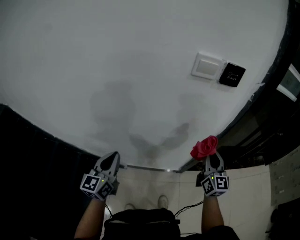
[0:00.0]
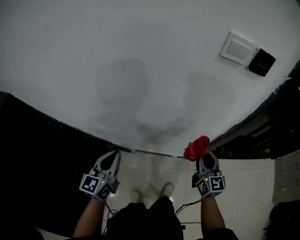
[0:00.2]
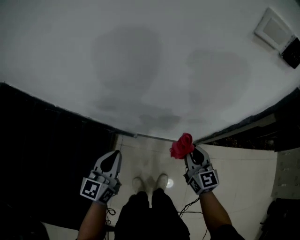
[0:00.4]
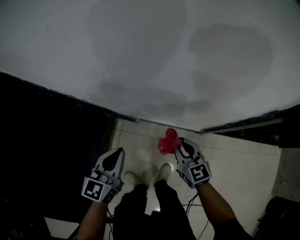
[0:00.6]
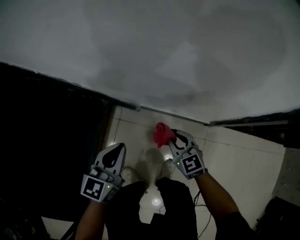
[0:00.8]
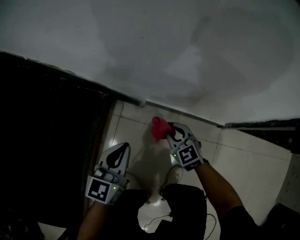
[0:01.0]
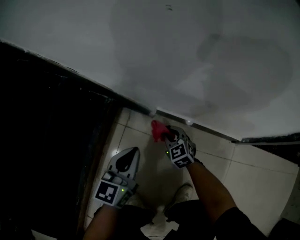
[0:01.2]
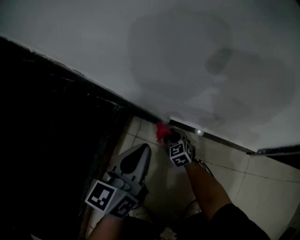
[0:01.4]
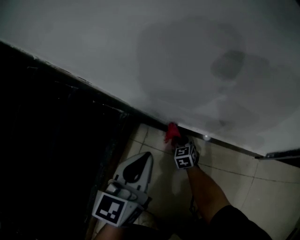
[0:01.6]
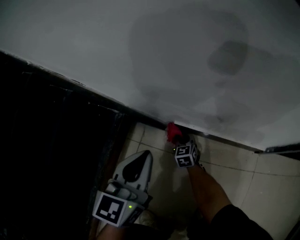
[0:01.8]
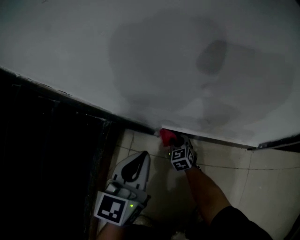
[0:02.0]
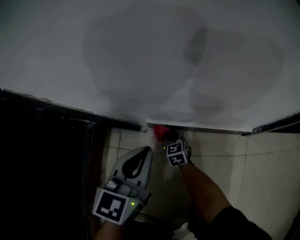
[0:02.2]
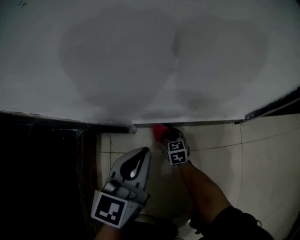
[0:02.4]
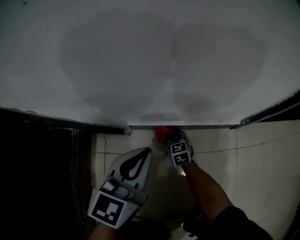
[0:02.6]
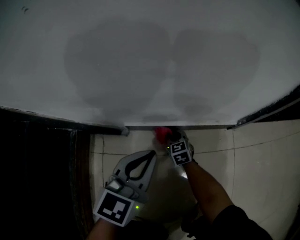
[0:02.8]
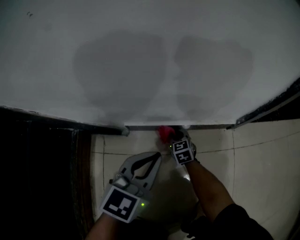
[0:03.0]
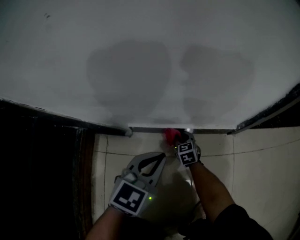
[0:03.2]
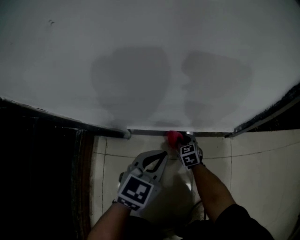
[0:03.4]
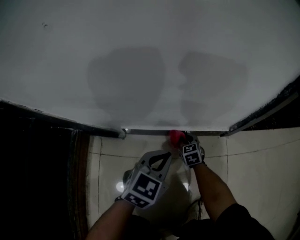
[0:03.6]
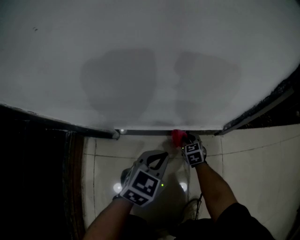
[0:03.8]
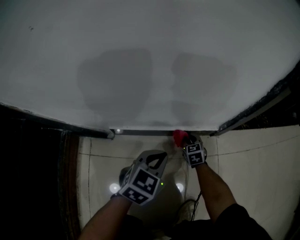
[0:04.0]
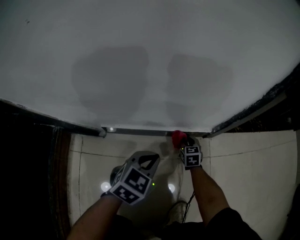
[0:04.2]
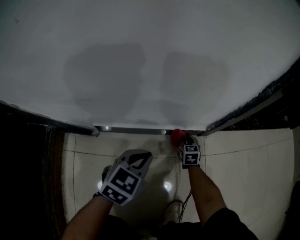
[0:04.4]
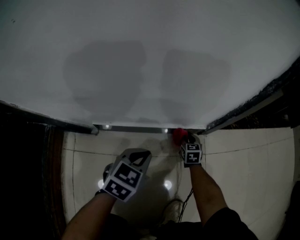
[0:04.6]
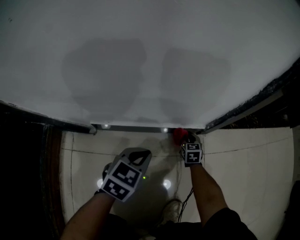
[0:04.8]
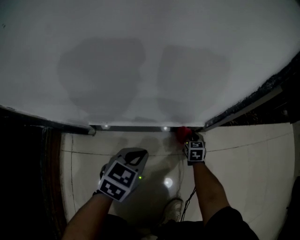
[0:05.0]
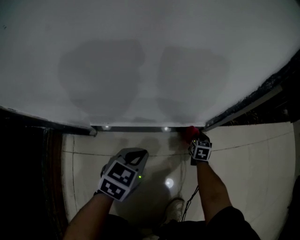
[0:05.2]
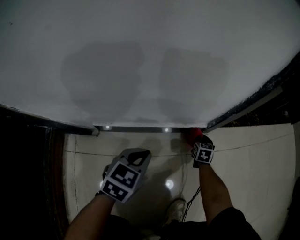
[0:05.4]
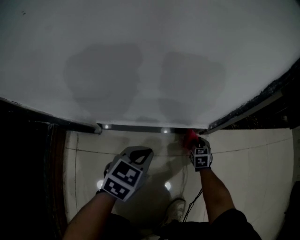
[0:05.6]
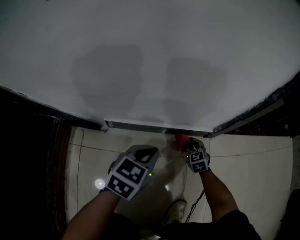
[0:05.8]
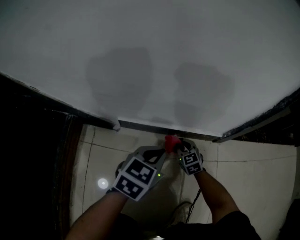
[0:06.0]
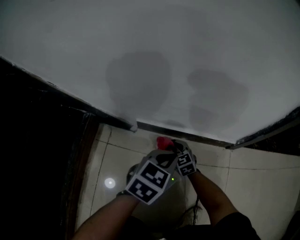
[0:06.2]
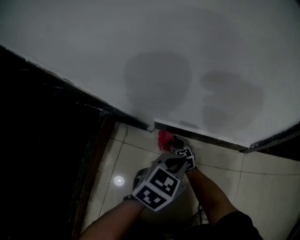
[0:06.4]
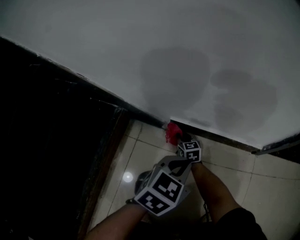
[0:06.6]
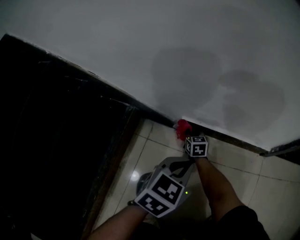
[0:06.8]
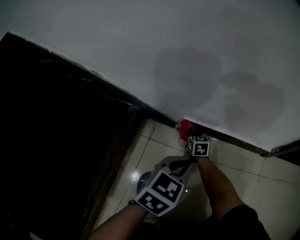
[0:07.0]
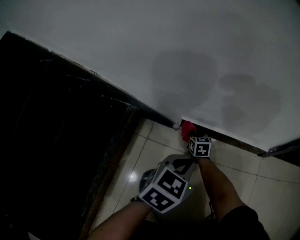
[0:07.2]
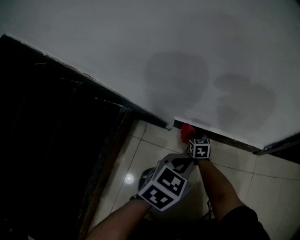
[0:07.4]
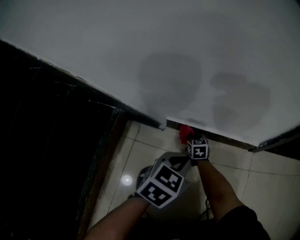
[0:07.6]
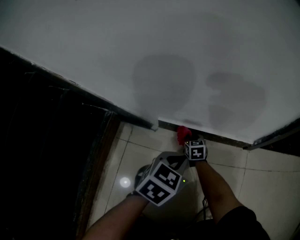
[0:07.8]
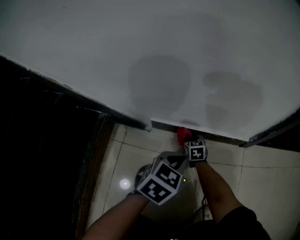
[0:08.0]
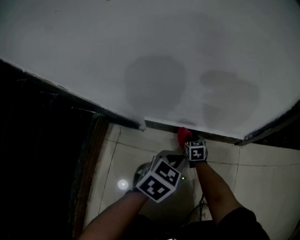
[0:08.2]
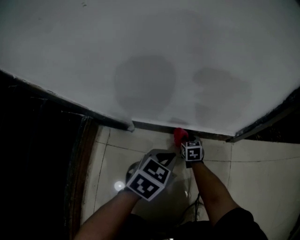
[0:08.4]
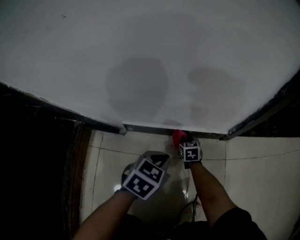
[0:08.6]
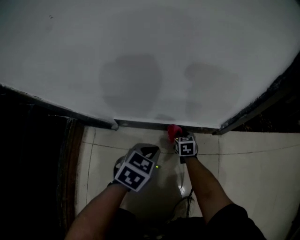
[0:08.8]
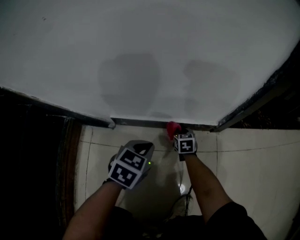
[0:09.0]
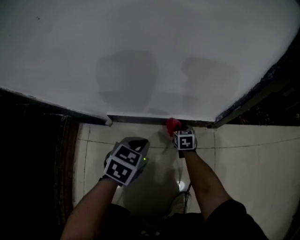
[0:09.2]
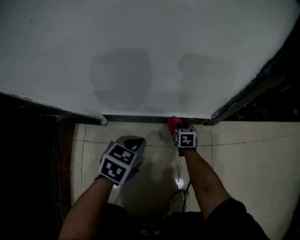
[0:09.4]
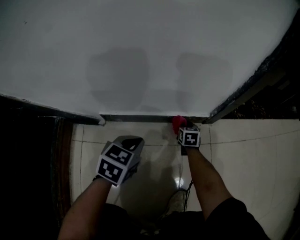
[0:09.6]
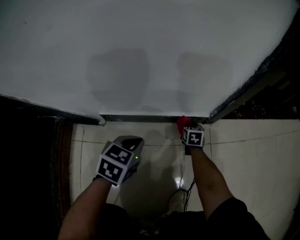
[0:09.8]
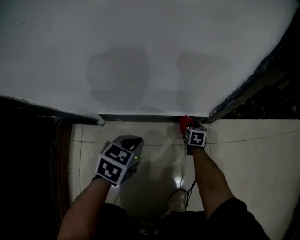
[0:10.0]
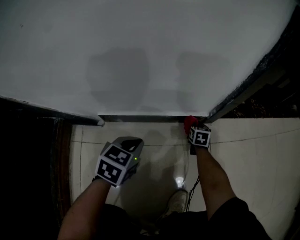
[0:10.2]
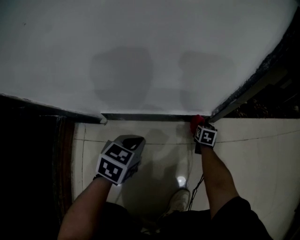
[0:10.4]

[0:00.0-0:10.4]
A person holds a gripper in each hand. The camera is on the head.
0:00.0 to 0:01.4: The left gripper travels downward by approximately 60 cm. Meanwhile the right gripper moves downward and to the left, approximately 1 m, and tilts its fingers roughly 40 degrees downward.
0:01.4 to 0:03.0: The right gripper moves about 20 cm, and changes its angle by about 30 degrees; the left gripper shifts by about 20 cm, and changes its angle by roughly 40 degrees.
0:03.0 to 0:04.4: The left gripper moves to the right and downward, some 15 cm. The right gripper travels to the right by some 25 cm.
0:04.4 to 0:06.0: The right gripper shifts by about 15 cm, and changes its angle by some 30 degrees, while the left gripper ends up some 5 cm from where it was.
0:06.0 to 0:07.4: The right gripper heads to the left, covering about 20 cm, while the left gripper heads to the left, covering approximately 10 cm.
0:07.4 to 0:09.0: The left gripper moves to the right and forward, about 15 cm. Meanwhile the right gripper is displaced to the right by roughly 25 cm.
0:09.0 to 0:10.4: The right gripper heads to the right, covering approximately 20 cm, and swivels roughly 20 degrees.

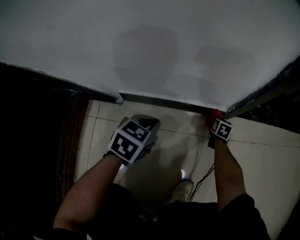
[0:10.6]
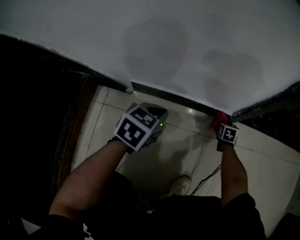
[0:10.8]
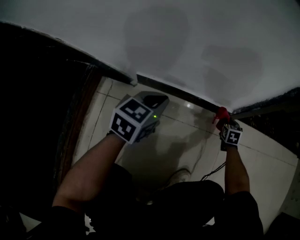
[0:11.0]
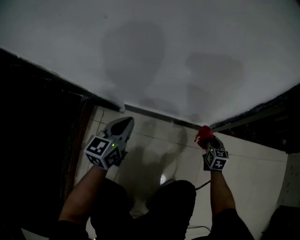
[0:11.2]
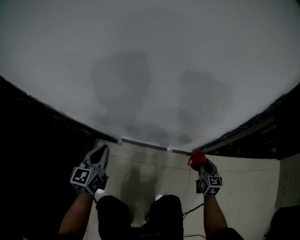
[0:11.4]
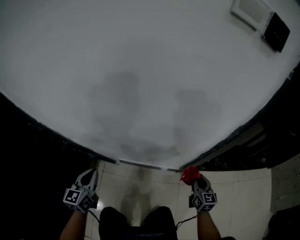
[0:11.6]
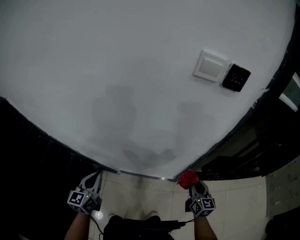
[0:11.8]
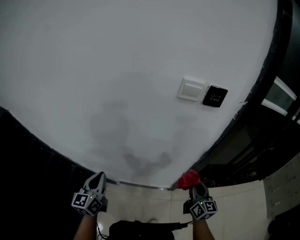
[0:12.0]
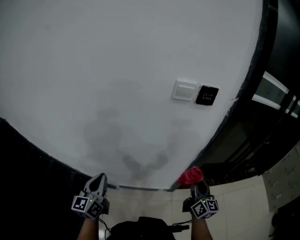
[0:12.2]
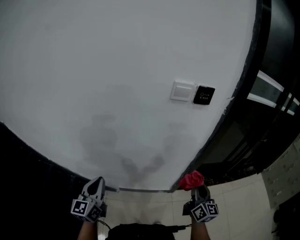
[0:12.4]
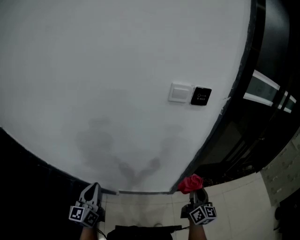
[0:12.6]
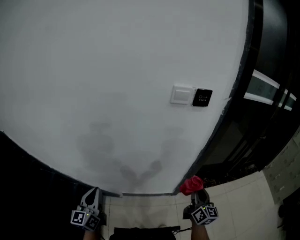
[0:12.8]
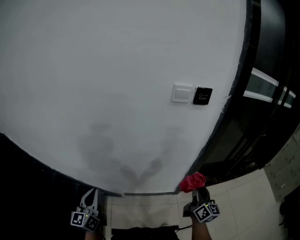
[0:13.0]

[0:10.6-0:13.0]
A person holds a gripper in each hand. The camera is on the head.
0:10.6 to 0:11.8: The grippers both shift upward by about 70 cm. The right gripper angles its fingers upward, by some 40 degrees. The left gripper angles its fingers upward, by roughly 30 degrees.
0:11.8 to 0:13.0: The two grippers go roughly 15 cm upward and backward. The right gripper rotates roughly 30 degrees.

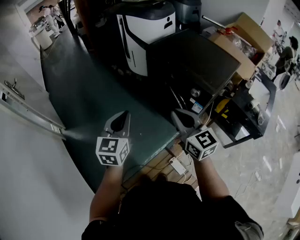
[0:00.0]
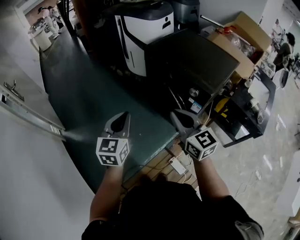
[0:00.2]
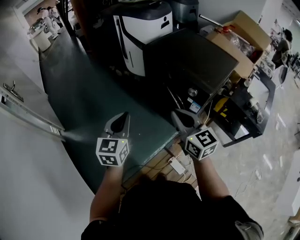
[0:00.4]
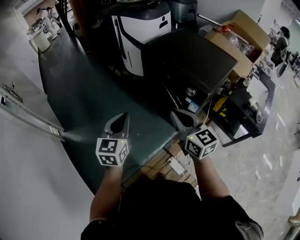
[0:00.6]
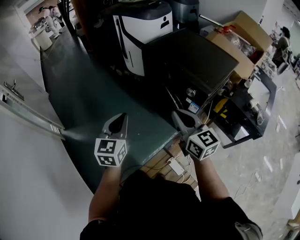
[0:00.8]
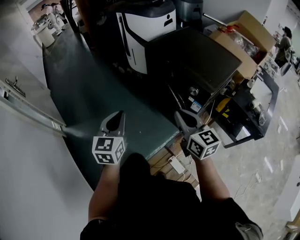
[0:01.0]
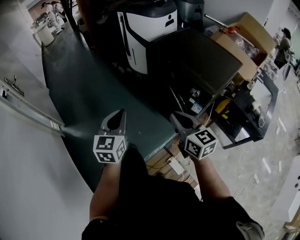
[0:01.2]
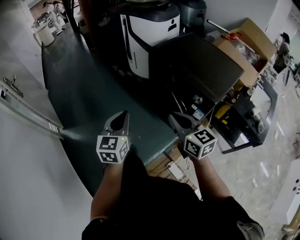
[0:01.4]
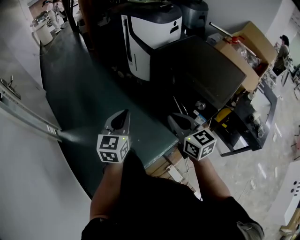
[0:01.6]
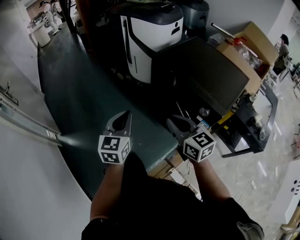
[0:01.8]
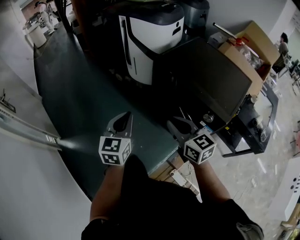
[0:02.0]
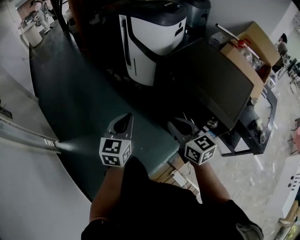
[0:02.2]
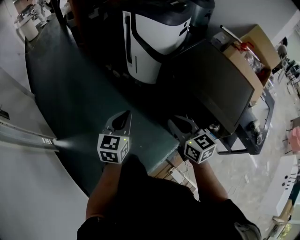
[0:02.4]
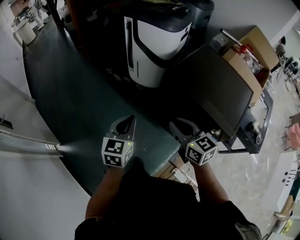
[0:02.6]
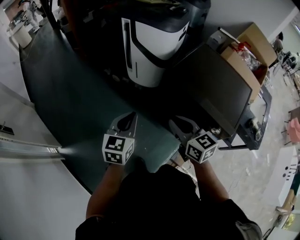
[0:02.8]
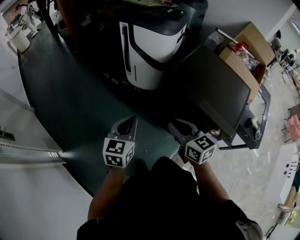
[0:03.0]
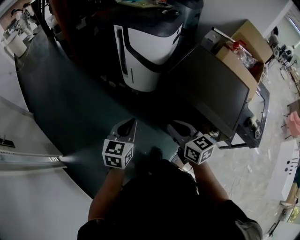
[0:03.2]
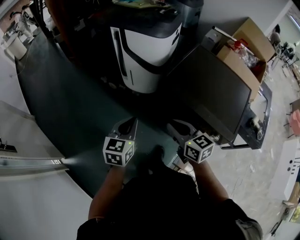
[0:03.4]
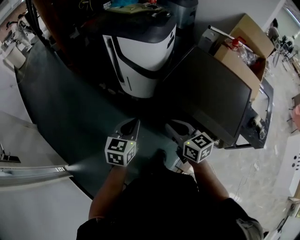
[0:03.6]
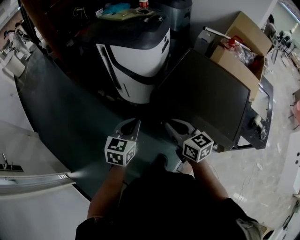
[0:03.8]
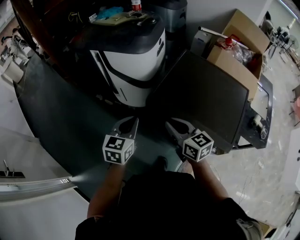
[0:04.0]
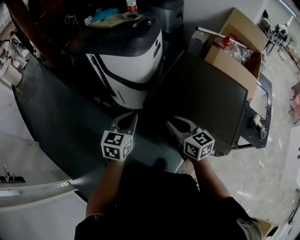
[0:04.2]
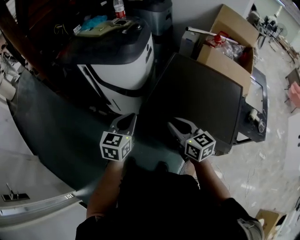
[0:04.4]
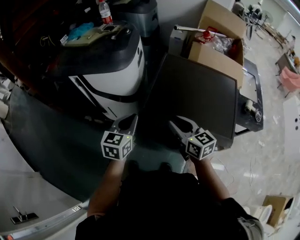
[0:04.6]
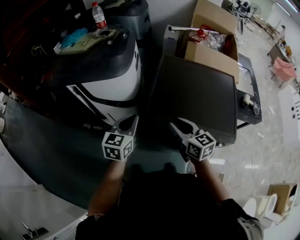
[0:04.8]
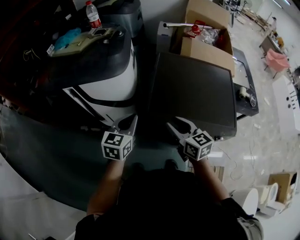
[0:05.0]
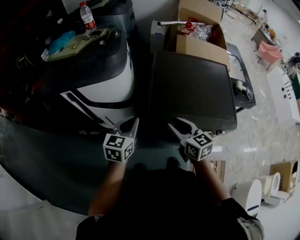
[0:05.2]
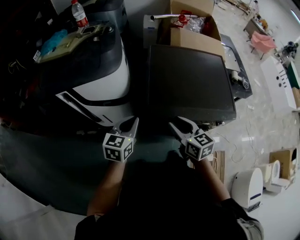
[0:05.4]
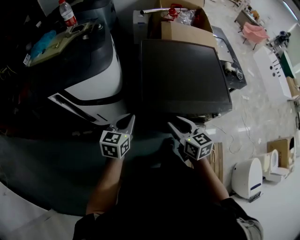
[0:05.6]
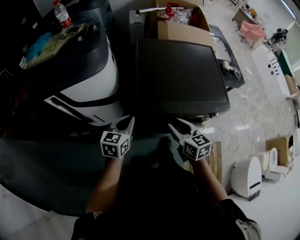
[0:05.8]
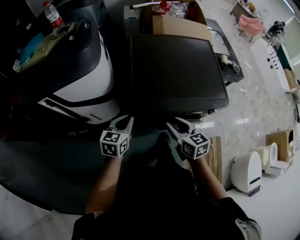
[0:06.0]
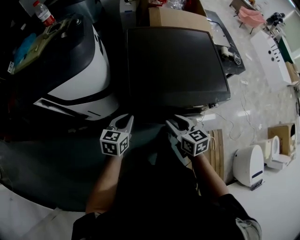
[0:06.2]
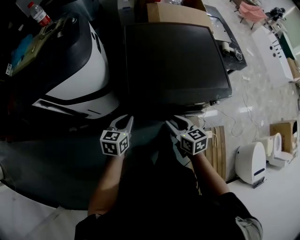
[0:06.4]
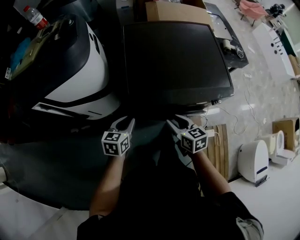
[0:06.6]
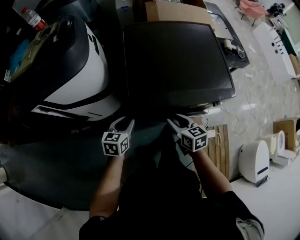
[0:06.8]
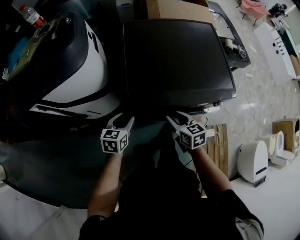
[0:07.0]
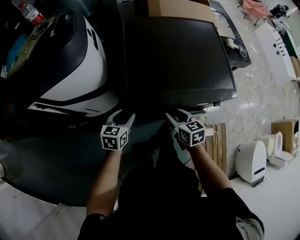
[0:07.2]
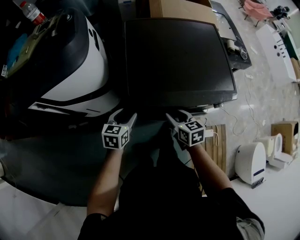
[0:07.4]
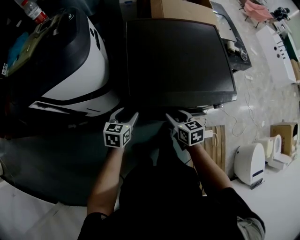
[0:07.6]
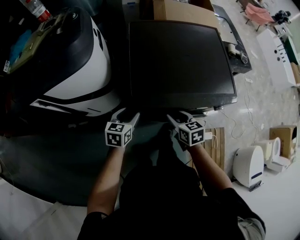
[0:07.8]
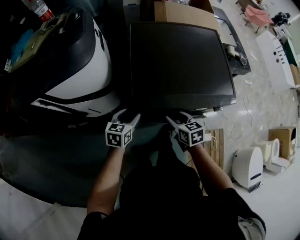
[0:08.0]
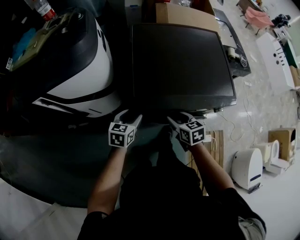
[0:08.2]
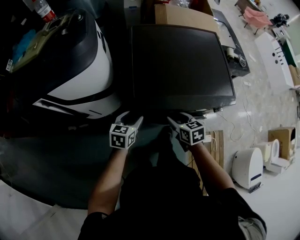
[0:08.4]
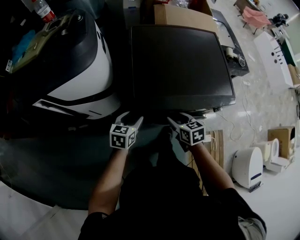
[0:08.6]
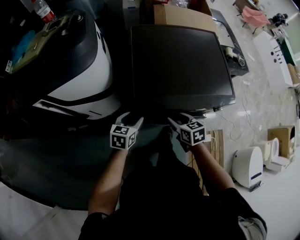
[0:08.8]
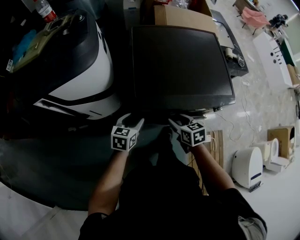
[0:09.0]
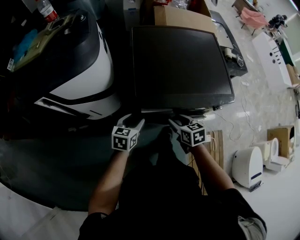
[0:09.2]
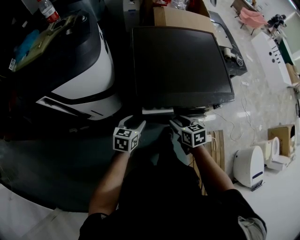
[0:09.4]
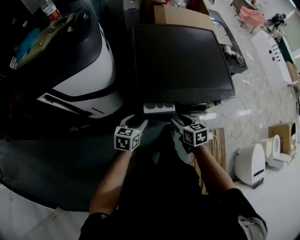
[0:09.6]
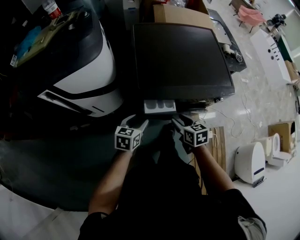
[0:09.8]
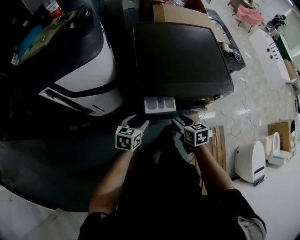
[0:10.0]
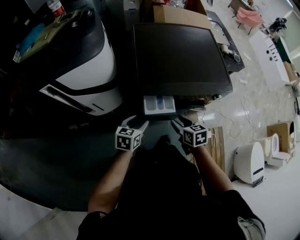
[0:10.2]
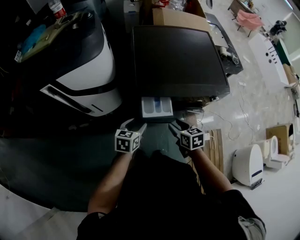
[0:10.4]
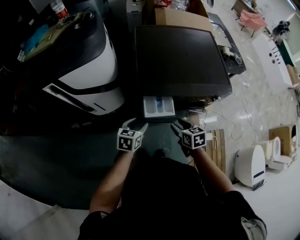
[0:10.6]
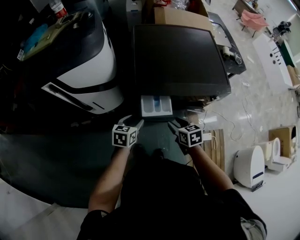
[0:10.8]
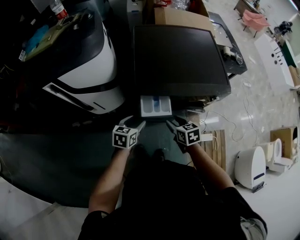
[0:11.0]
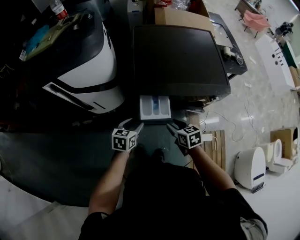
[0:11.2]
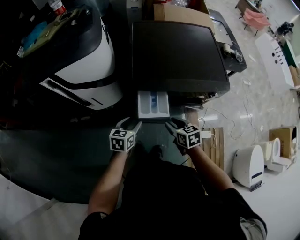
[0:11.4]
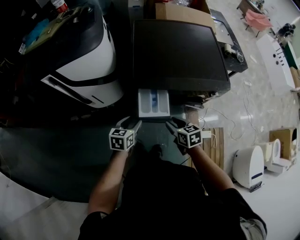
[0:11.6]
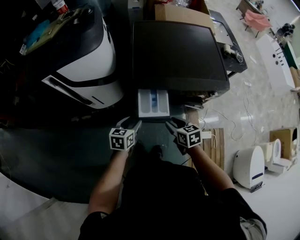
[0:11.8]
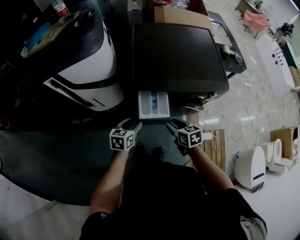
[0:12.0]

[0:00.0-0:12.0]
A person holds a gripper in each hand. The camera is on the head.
0:00.0 to 0:01.6: The two grippers go some 10 cm forward.
0:01.6 to 0:03.0: The right gripper travels forward and to the left by about 30 cm, while the left gripper shifts about 25 cm forward.
0:03.0 to 0:04.4: Both grippers move forward and to the right, approximately 30 cm.
0:04.4 to 0:06.0: Both grippers move downward, roughly 10 cm. The left gripper swivels some 30 degrees. The right gripper changes its angle by about 40 degrees.
0:06.0 to 0:07.6: Both grippers move downward, approximately 10 cm. The left gripper opens up.
0:07.6 to 0:09.0: There are only small adjustments of the grippers.
0:09.0 to 0:10.4: Both grippers move backward, approximately 10 cm.
0:10.4 to 0:12.0: The grippers move only a little.
